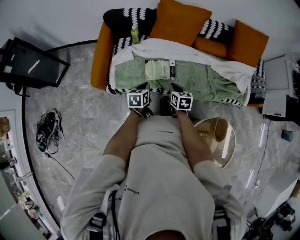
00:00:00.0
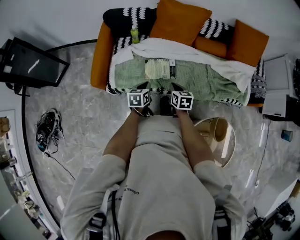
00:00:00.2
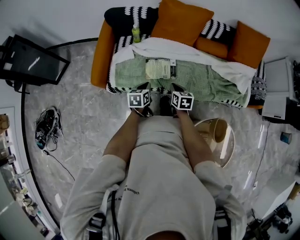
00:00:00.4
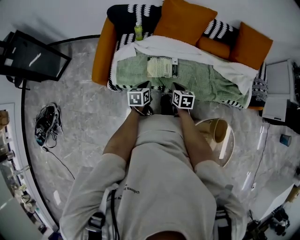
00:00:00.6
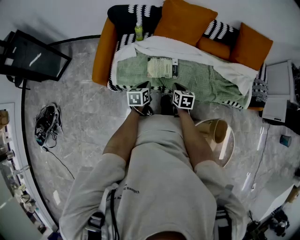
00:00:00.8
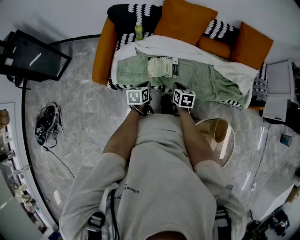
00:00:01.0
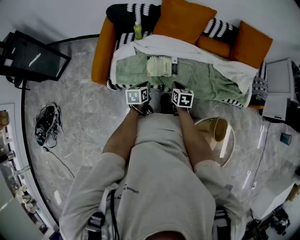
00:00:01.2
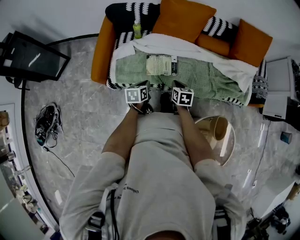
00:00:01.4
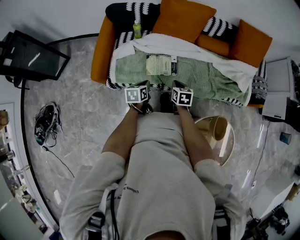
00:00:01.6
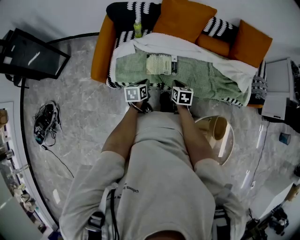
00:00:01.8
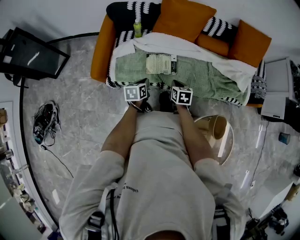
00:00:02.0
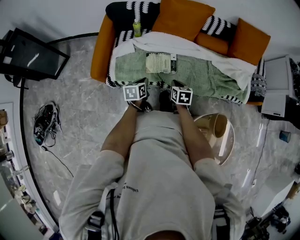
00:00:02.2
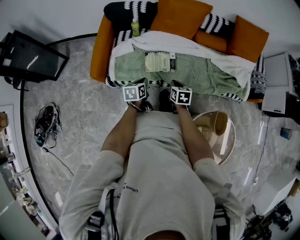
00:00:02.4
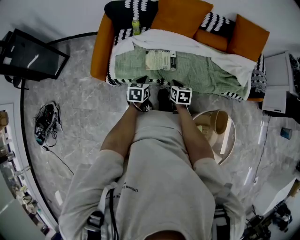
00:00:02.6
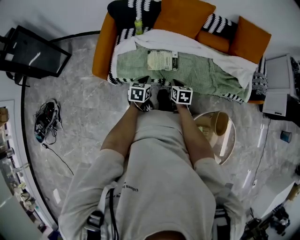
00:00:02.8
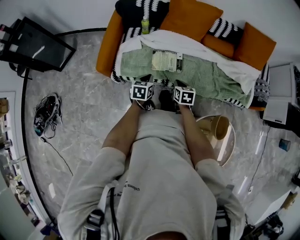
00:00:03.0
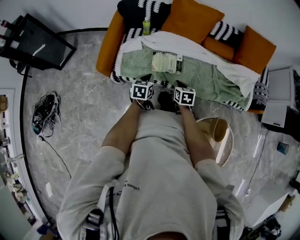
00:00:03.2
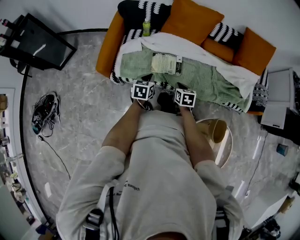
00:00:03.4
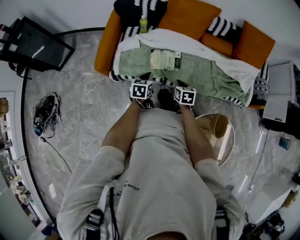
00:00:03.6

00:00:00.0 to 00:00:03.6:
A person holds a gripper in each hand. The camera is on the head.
00:00:00.0 to 00:00:03.6: The grippers make only small movements.

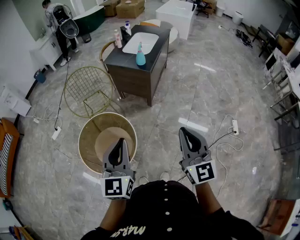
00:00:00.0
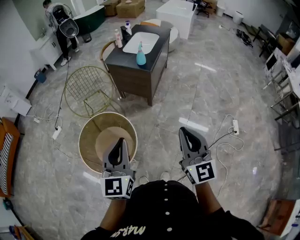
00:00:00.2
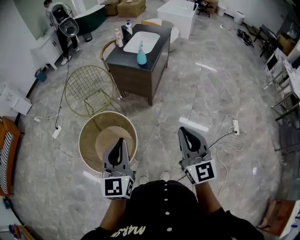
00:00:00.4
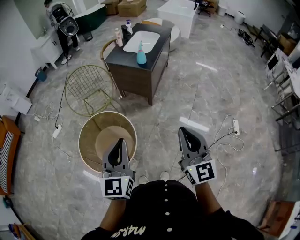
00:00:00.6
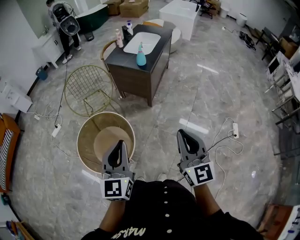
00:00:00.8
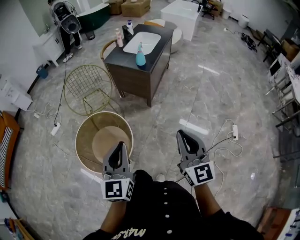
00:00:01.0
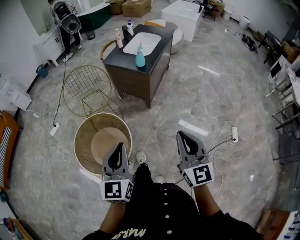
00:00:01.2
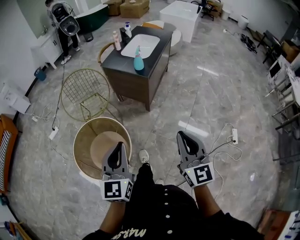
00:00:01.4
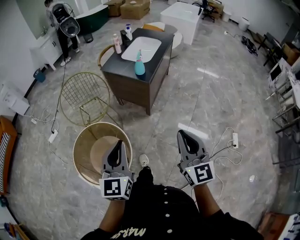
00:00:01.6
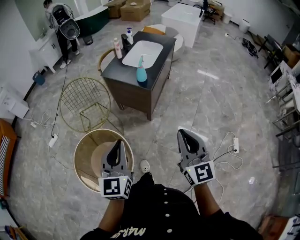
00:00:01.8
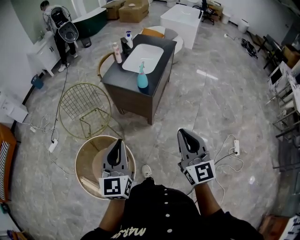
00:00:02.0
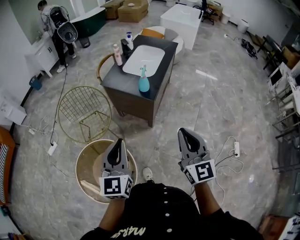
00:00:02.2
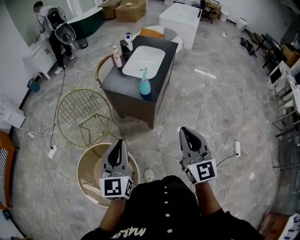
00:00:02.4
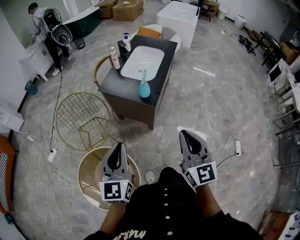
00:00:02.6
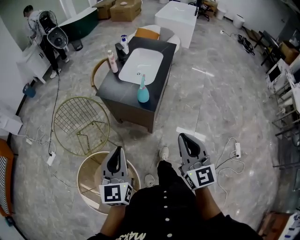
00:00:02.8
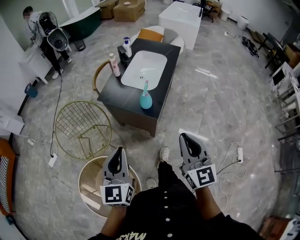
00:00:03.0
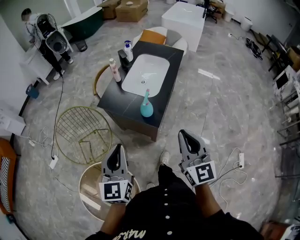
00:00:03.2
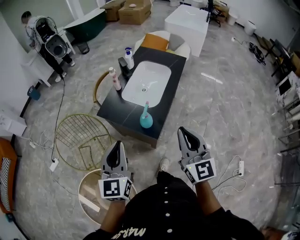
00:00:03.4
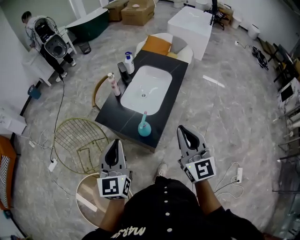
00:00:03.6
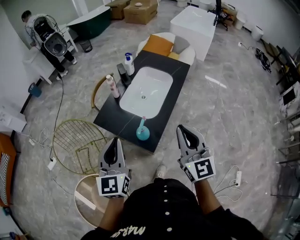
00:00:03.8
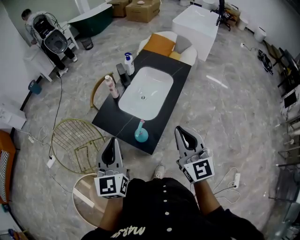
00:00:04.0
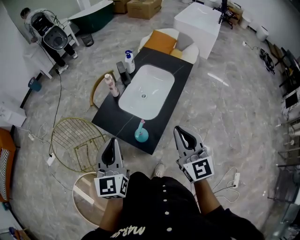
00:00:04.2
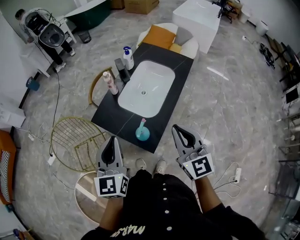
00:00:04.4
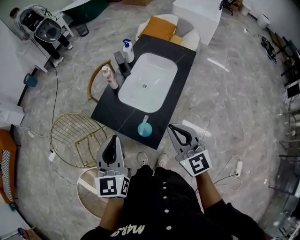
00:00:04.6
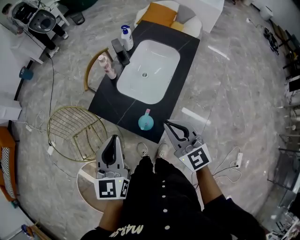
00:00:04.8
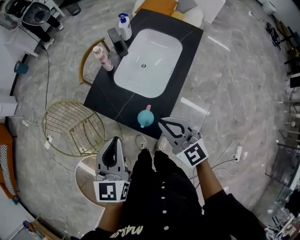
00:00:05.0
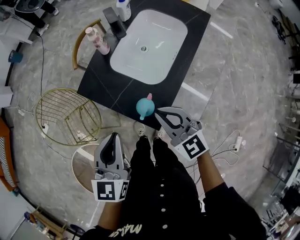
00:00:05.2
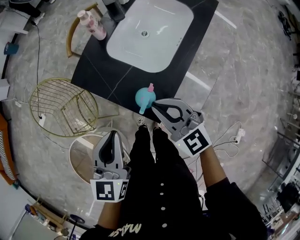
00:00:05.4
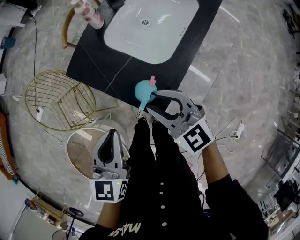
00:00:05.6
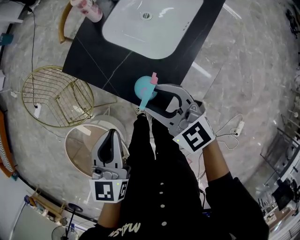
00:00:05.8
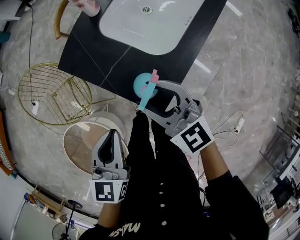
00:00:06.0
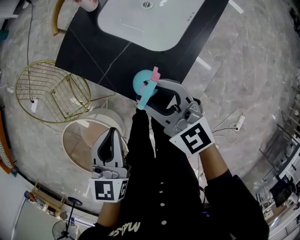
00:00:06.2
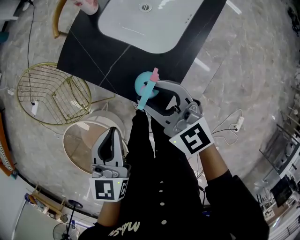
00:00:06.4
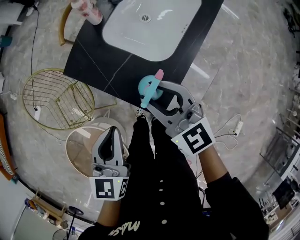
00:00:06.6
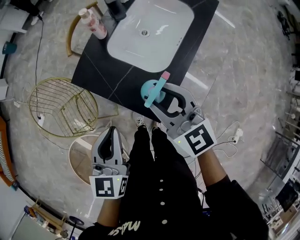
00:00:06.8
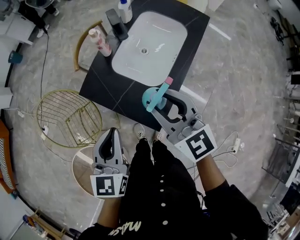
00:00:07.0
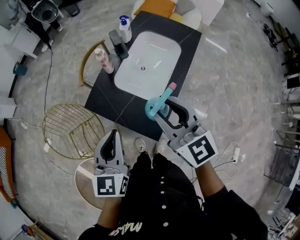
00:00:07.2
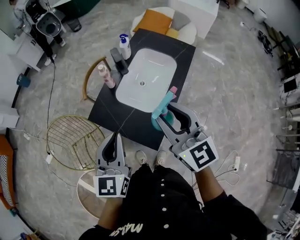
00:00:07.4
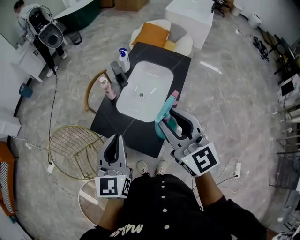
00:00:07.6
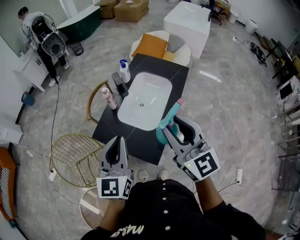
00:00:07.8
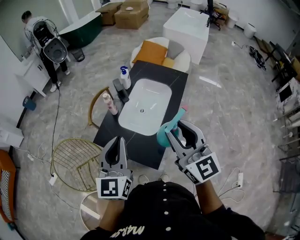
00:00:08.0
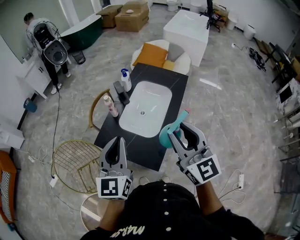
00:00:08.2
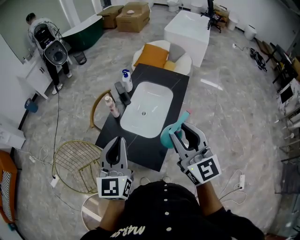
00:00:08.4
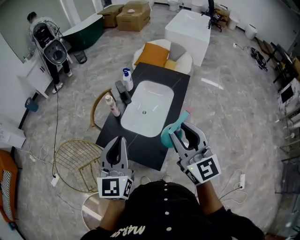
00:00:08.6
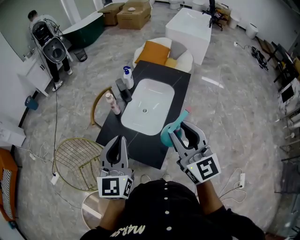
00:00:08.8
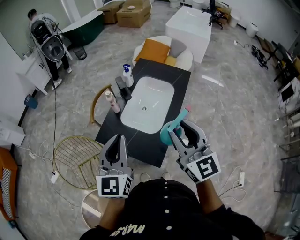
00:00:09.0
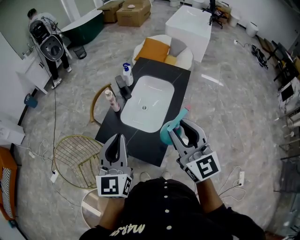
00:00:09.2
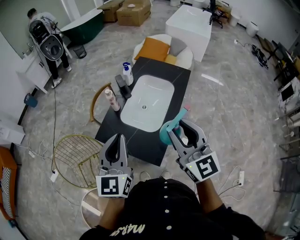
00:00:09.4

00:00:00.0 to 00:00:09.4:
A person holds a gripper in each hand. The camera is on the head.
00:00:00.0 to 00:00:01.6: The right gripper is displaced forward and to the right by roughly 15 cm. Meanwhile the left gripper moves forward, about 10 cm.
00:00:01.6 to 00:00:03.2: The two grippers go roughly 35 cm forward.
00:00:03.2 to 00:00:04.8: The two grippers go approximately 20 cm forward. The right gripper swivels about 30 degrees.
00:00:04.8 to 00:00:06.2: The left gripper shifts about 20 cm downward. The right gripper travels downward and to the left by some 15 cm, and opens its fingers.
00:00:06.2 to 00:00:07.8: The grippers both shift upward by approximately 30 cm. The right gripper rotates about 30 degrees. The left gripper rotates roughly 30 degrees.
00:00:07.8 to 00:00:09.4: The grippers make only small movements.

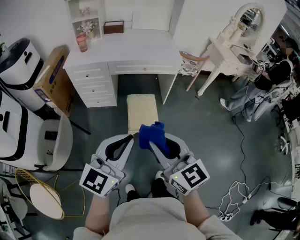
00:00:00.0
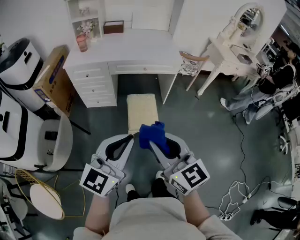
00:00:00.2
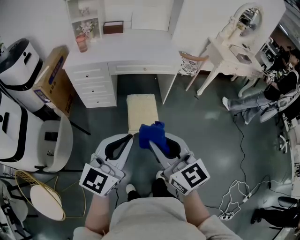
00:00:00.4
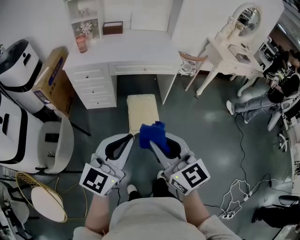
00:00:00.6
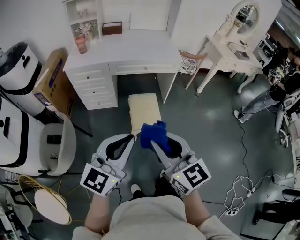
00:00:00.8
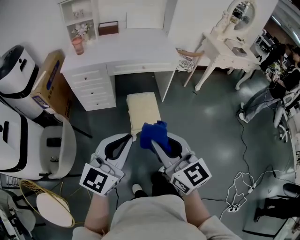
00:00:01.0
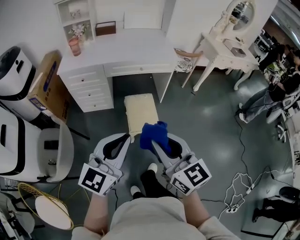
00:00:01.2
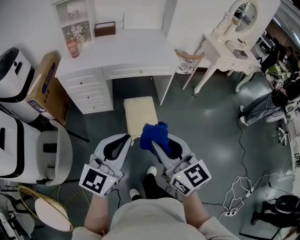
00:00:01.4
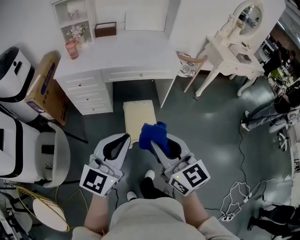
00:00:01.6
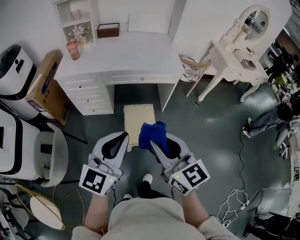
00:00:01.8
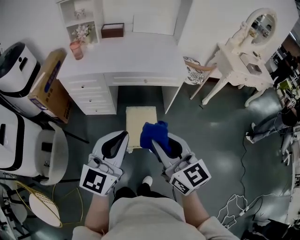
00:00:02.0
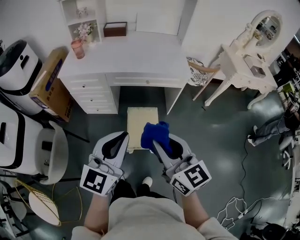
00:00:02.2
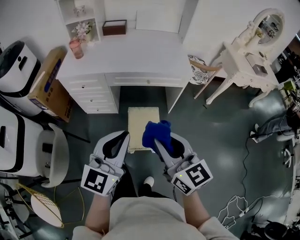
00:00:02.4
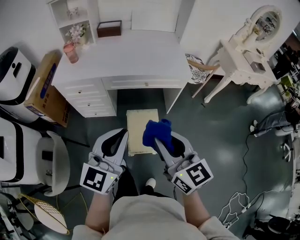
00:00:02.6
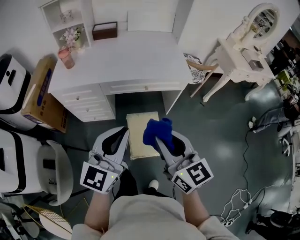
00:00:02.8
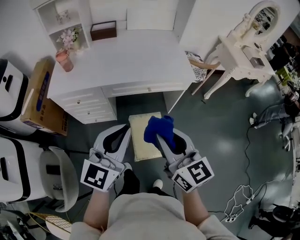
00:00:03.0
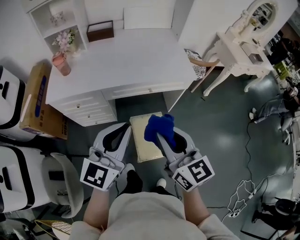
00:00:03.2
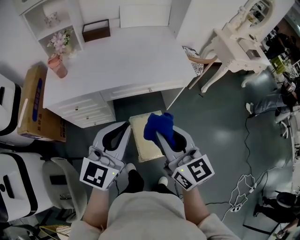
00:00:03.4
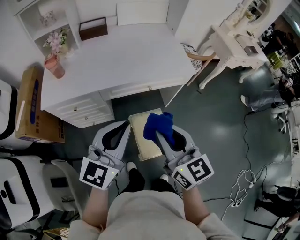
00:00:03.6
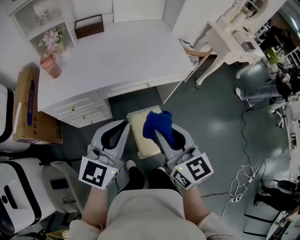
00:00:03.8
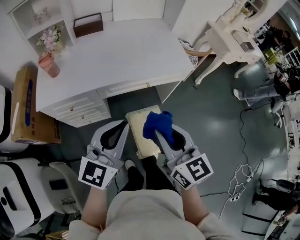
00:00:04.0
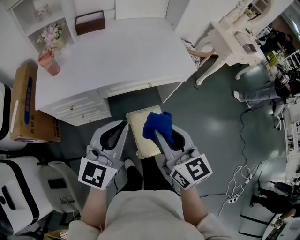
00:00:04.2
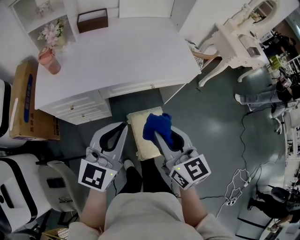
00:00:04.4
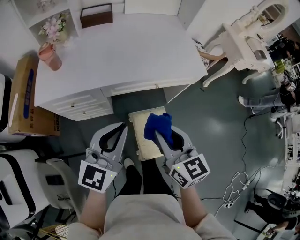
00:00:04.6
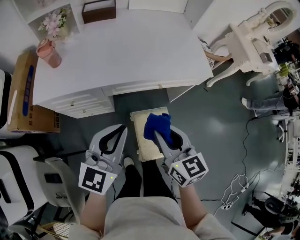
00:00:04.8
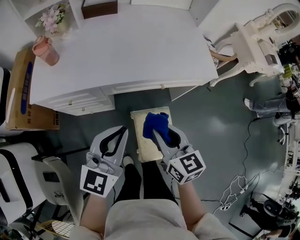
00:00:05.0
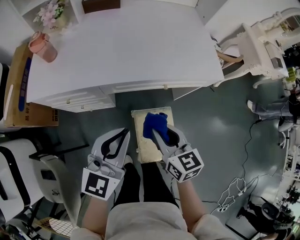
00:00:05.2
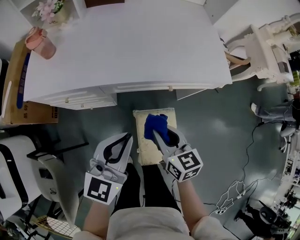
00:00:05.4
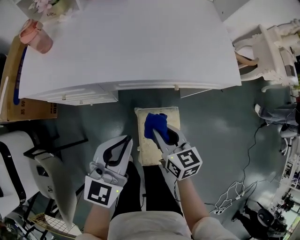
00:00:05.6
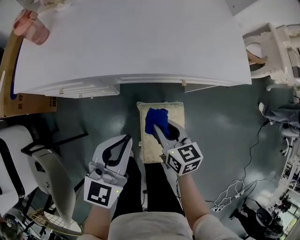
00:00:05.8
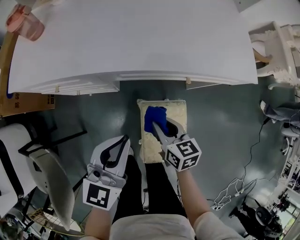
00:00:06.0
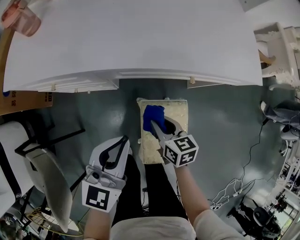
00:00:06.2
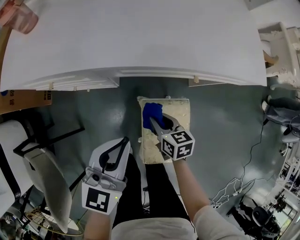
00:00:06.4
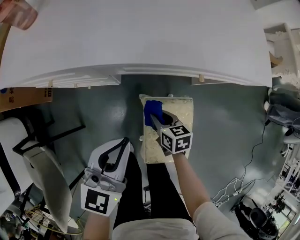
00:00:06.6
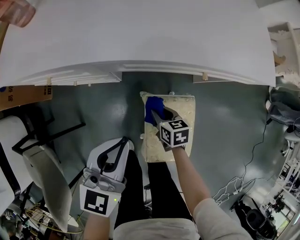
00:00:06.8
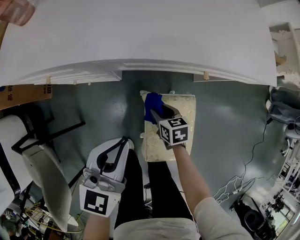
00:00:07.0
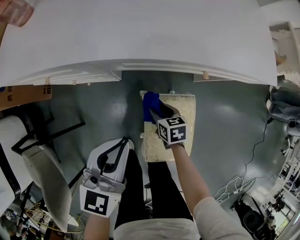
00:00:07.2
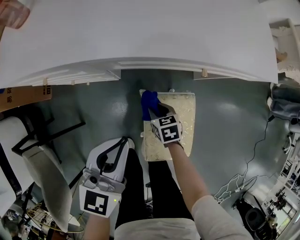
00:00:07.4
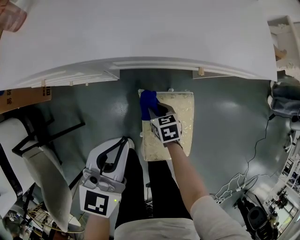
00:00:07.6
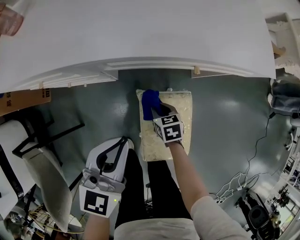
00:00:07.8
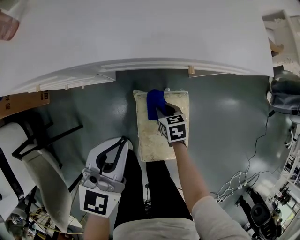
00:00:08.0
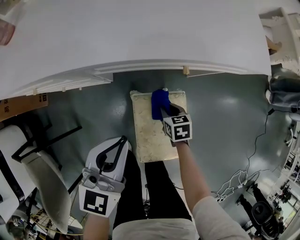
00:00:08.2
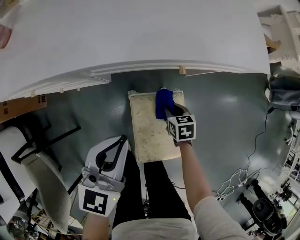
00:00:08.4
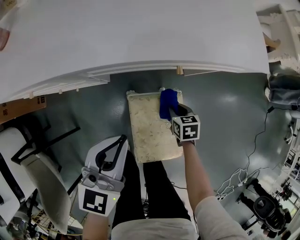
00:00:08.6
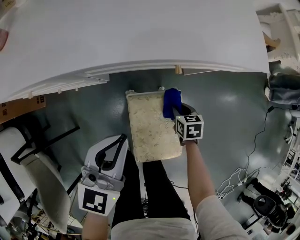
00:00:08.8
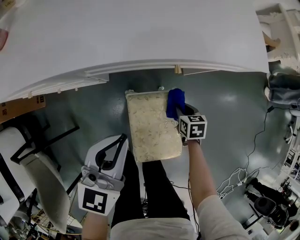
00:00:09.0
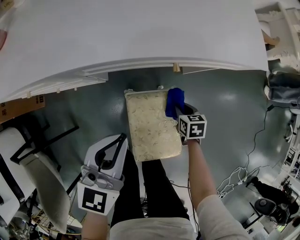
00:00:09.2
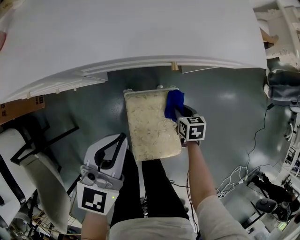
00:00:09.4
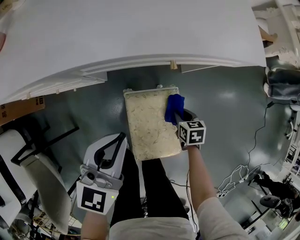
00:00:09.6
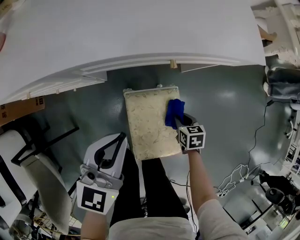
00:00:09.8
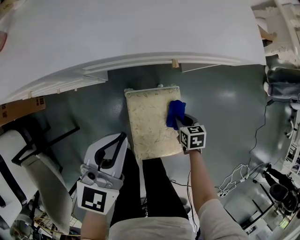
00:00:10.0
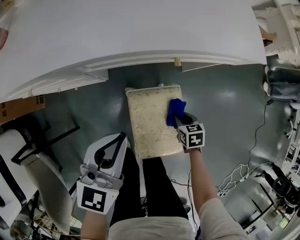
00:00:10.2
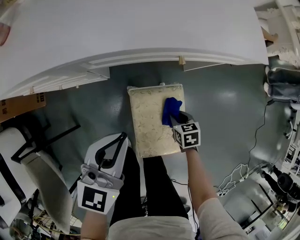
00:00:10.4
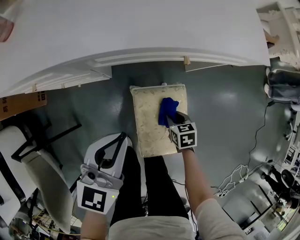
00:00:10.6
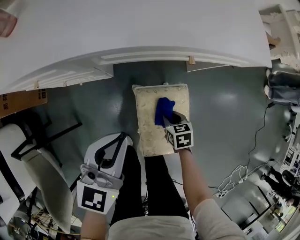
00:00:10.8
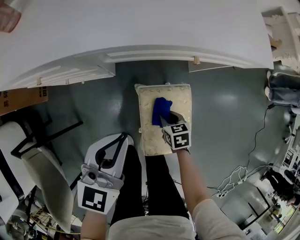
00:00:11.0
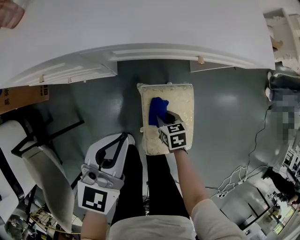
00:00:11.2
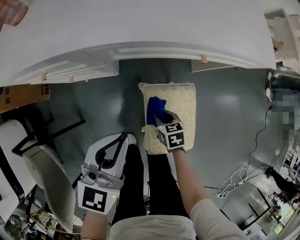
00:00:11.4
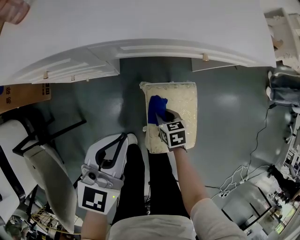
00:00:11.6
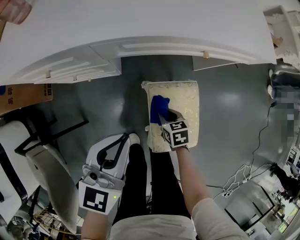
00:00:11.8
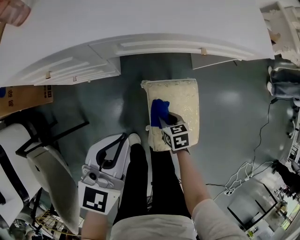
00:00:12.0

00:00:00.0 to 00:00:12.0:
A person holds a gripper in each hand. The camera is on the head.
00:00:00.0 to 00:00:01.6: The two grippers go about 10 cm forward.
00:00:01.6 to 00:00:03.0: The two grippers go roughly 25 cm forward.
00:00:03.0 to 00:00:04.4: The two grippers go about 15 cm to the left, forward and downward.
00:00:04.4 to 00:00:06.0: The left gripper heads downward, covering about 20 cm. The right gripper shifts about 35 cm downward, and rotates roughly 30 degrees.
00:00:06.0 to 00:00:07.6: The right gripper moves downward, approximately 20 cm, swivels approximately 20 degrees, and opens, then closes once more.
00:00:07.6 to 00:00:09.0: The left gripper goes approximately 5 cm to the right. The right gripper shifts roughly 20 cm to the right.
00:00:09.0 to 00:00:10.4: The right gripper is displaced backward by some 5 cm.
00:00:10.4 to 00:00:12.0: The left gripper travels to the left by roughly 10 cm. The right gripper moves to the left, some 15 cm.
